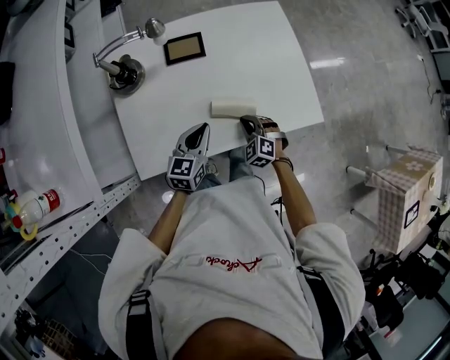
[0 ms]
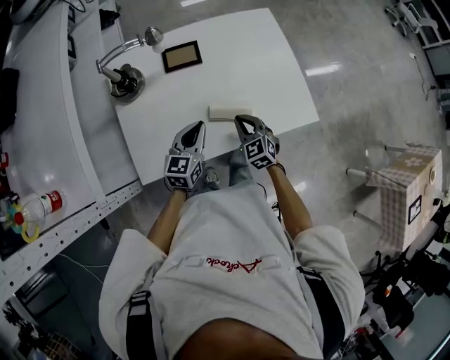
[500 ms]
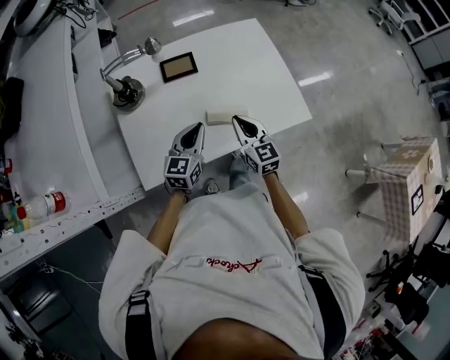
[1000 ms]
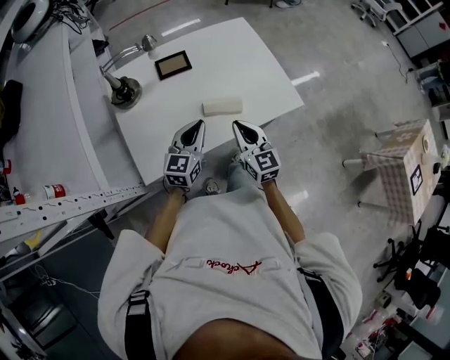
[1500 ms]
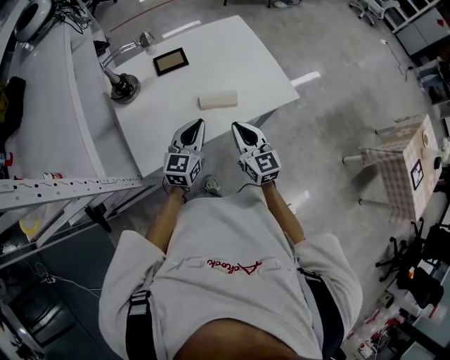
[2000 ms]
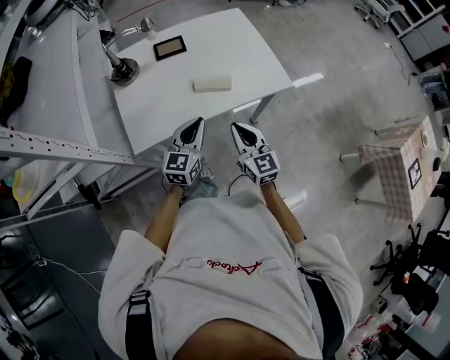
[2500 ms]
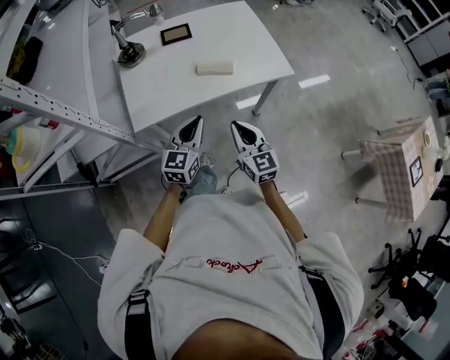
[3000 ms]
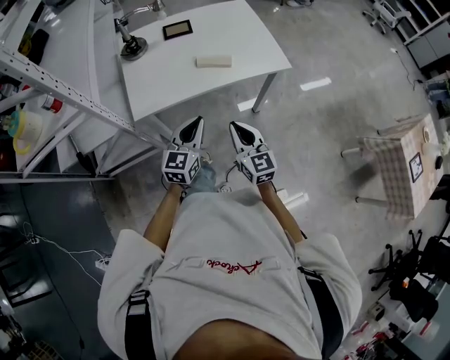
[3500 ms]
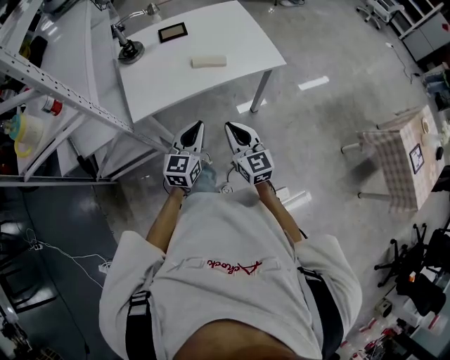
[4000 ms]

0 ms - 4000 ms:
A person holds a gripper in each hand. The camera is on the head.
0 ms - 2000 ms: The right gripper heads upward and backward, covering approximately 25 cm, and angles its fingers upward, by roughly 40 degrees; the left gripper travels upward and backward by roughly 10 cm.
2000 ms - 4000 ms: The two grippers go approximately 25 cm backward.

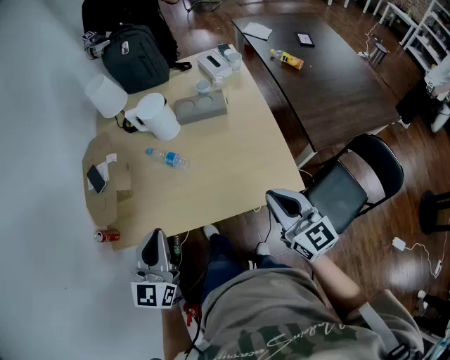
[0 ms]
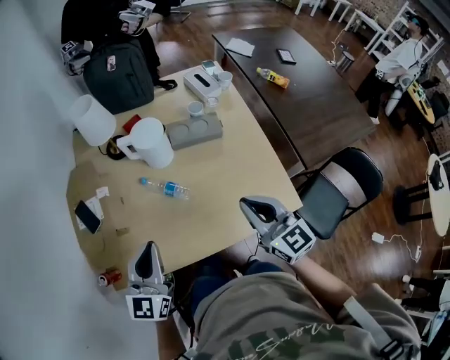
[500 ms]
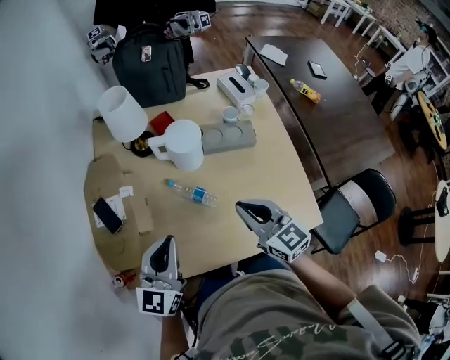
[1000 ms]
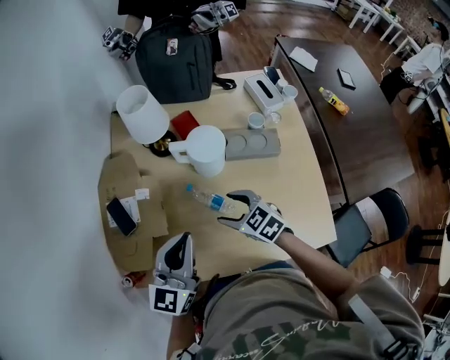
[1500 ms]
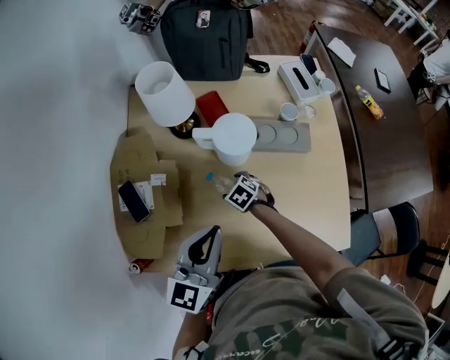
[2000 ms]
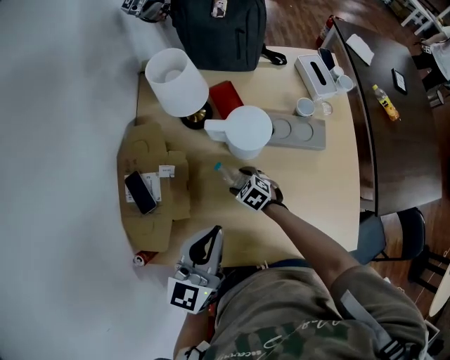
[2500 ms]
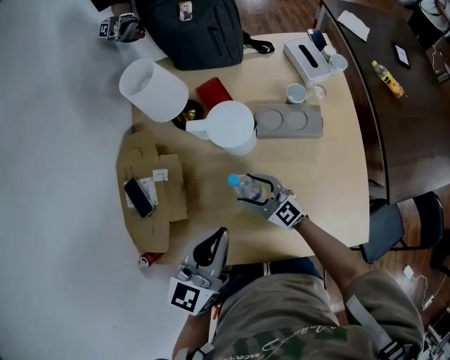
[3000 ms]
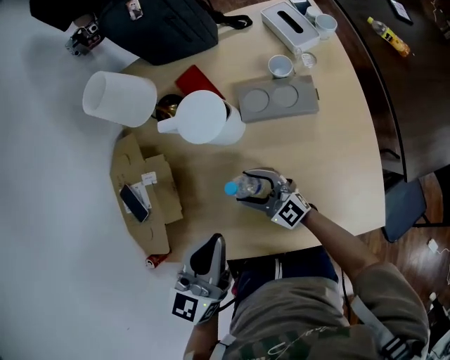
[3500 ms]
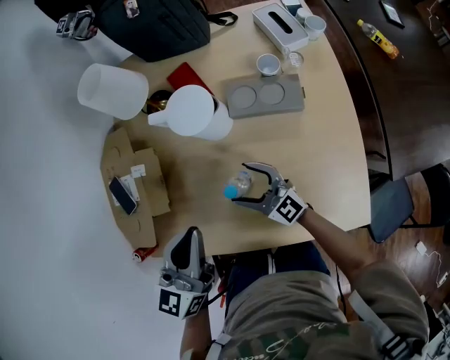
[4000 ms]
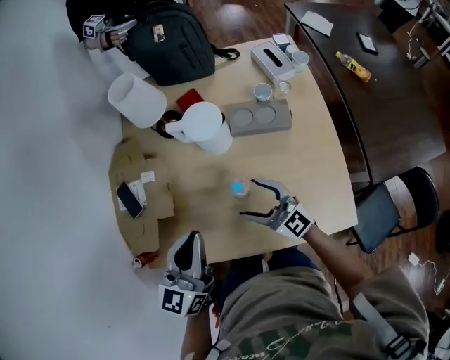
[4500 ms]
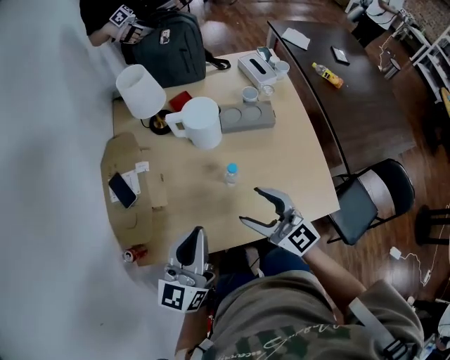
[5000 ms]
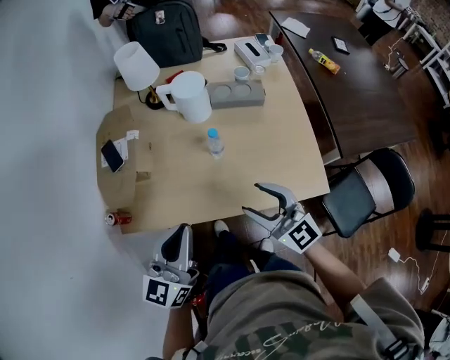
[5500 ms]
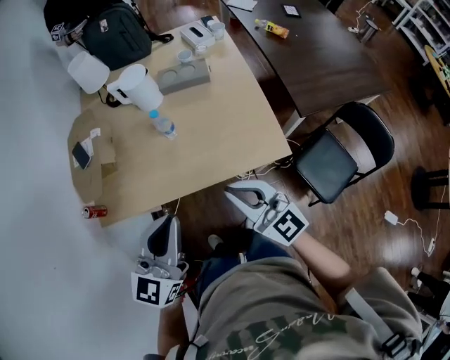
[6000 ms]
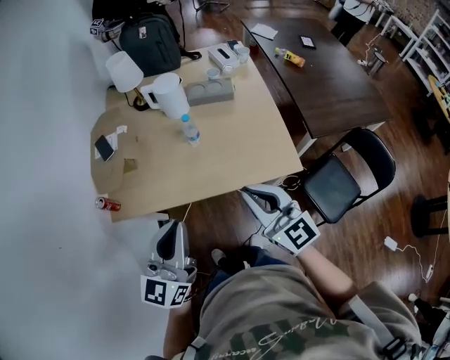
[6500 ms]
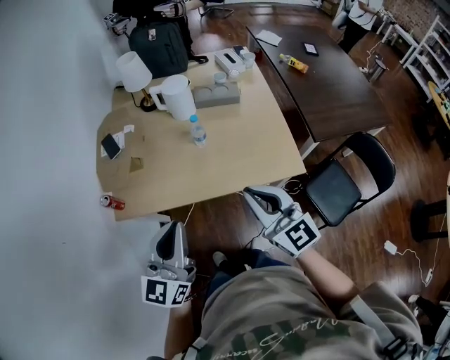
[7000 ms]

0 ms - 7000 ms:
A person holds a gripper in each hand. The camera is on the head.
0 ms - 2000 ms: The left gripper moves about 25 cm. Meanwhile the right gripper moves some 60 cm, points its fingers roughly 60 degrees further downward, and opens up.
2000 ms - 3500 ms: The left gripper is displaced to the right by about 5 cm. Meanwhile the right gripper goes some 10 cm upward and backward, and tips its fingers upward by approximately 60 degrees.
3500 ms - 5000 ms: The left gripper moves backward, to the left and upward, approximately 15 cm. Meanwhile the right gripper goes about 25 cm upward and backward.
5000 ms - 7000 ms: Both grippers travel together backward, some 25 cm. The right gripper closes.

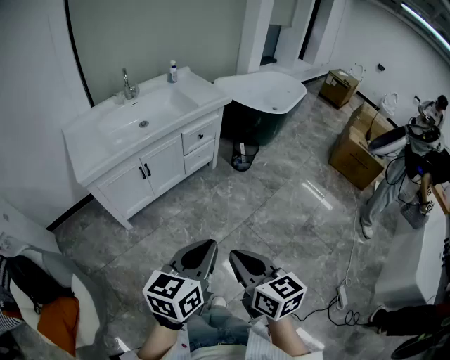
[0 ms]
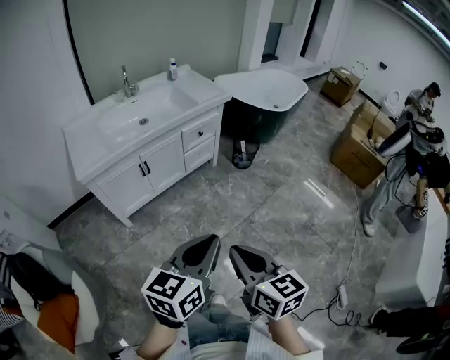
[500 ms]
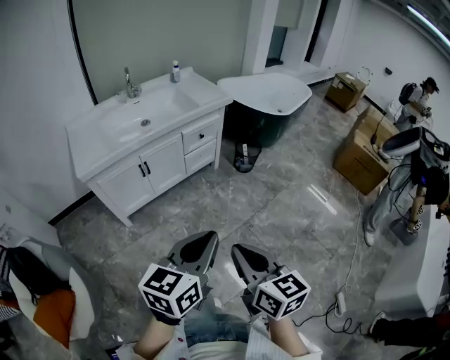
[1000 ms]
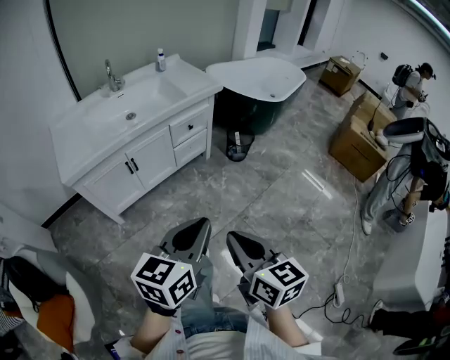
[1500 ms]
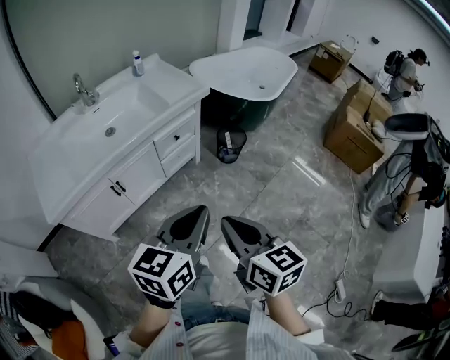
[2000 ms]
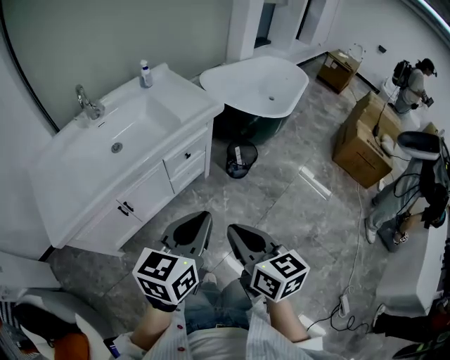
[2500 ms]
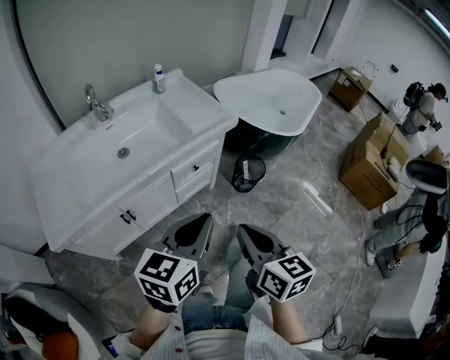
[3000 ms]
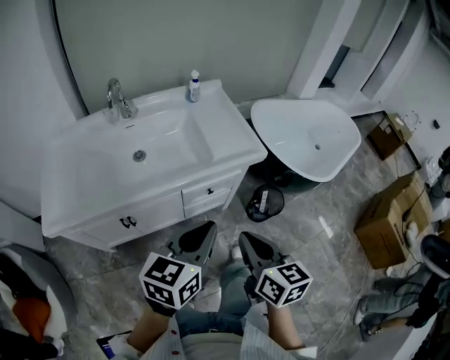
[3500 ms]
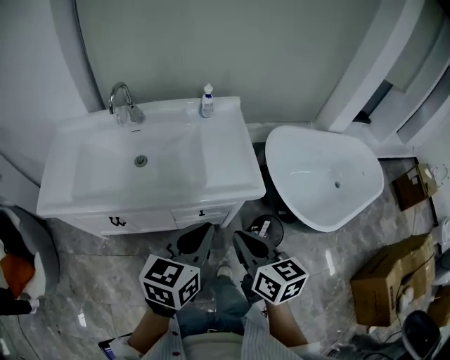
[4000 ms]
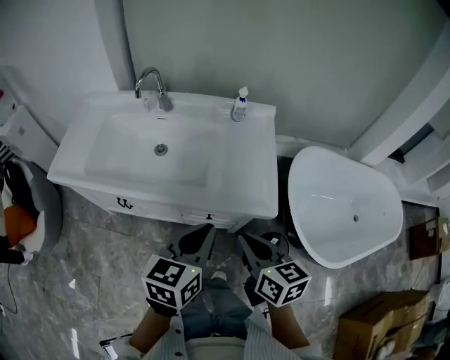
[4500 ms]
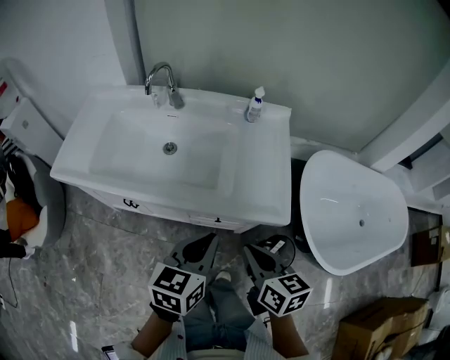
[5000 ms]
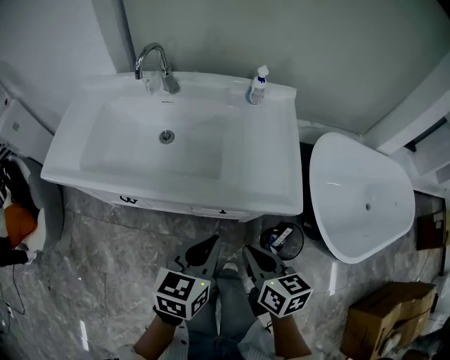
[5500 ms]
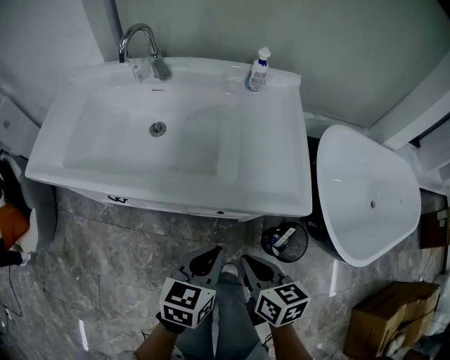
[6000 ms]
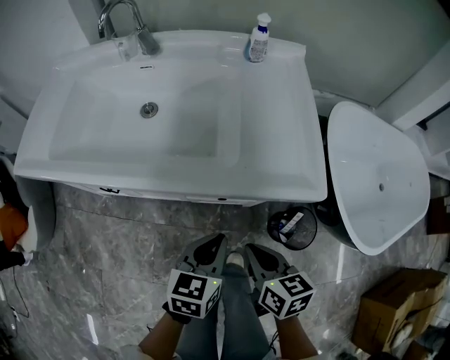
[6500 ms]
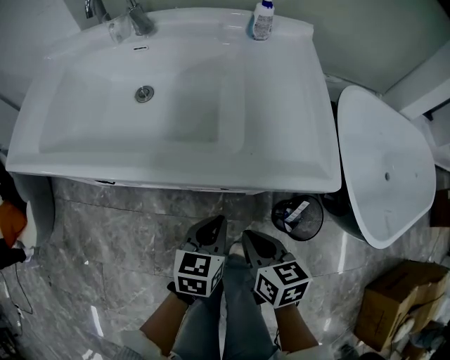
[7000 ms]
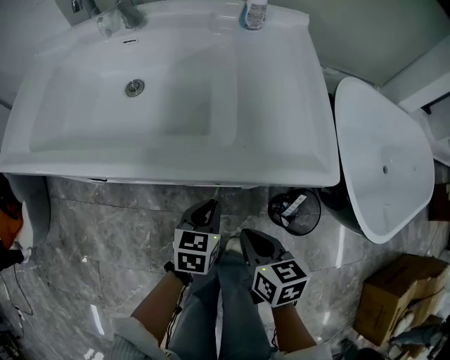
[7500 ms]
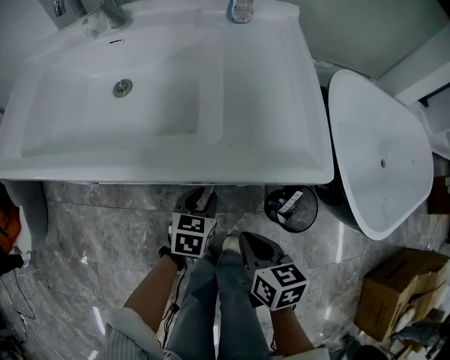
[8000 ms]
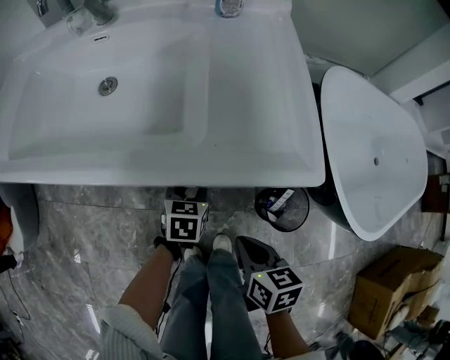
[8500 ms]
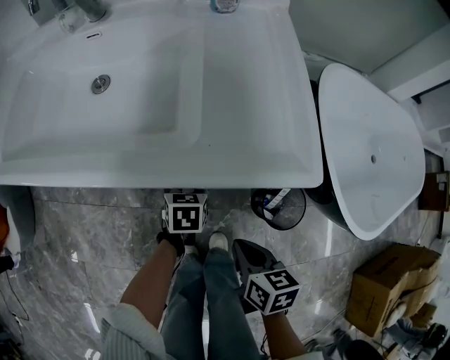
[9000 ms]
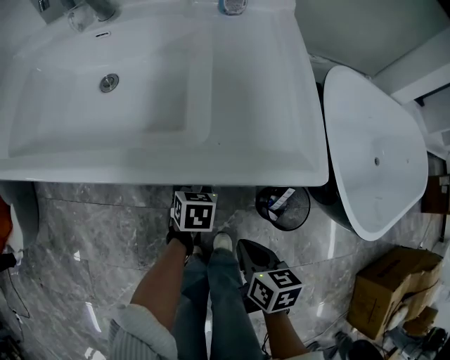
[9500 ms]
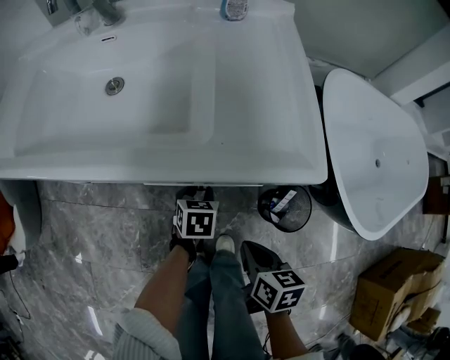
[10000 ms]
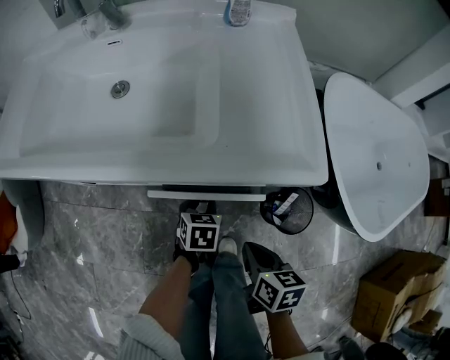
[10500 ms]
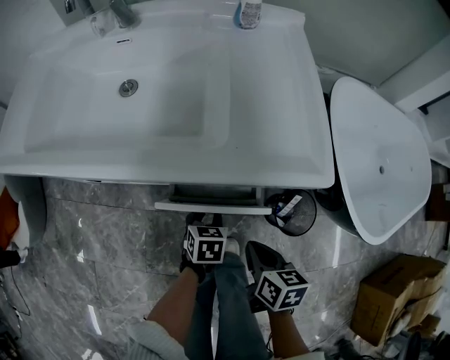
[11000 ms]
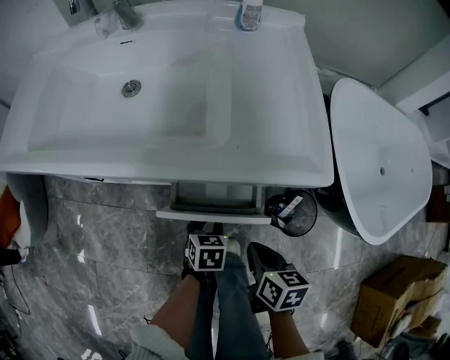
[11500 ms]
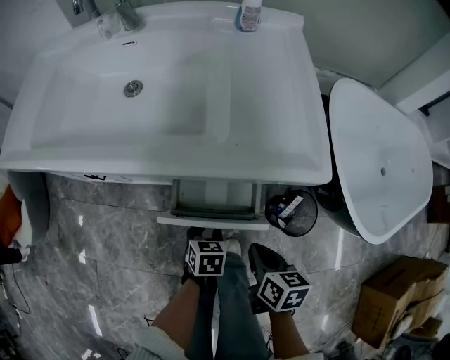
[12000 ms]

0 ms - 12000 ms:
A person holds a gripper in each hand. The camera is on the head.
0 ms - 2000 ms: The two grippers go some 25 cm forward.
2000 ms - 4000 ms: The two grippers travel together, roughly 40 cm. The right gripper turns by roughly 30 degrees. The left gripper turns by some 30 degrees.
4000 ms - 6000 ms: Both grippers travel together downward, approximately 20 cm.
6000 ms - 8000 ms: The right gripper goes roughly 15 cm downward. The left gripper moves downward and forward, roughly 25 cm, and opens.
8000 ms - 10000 ms: The grippers stay close to where they were, moving slightly.
10000 ms - 12000 ms: The left gripper travels backward by some 10 cm.

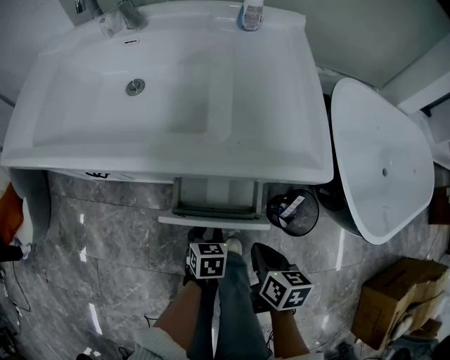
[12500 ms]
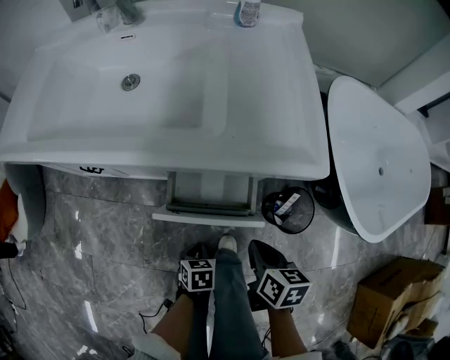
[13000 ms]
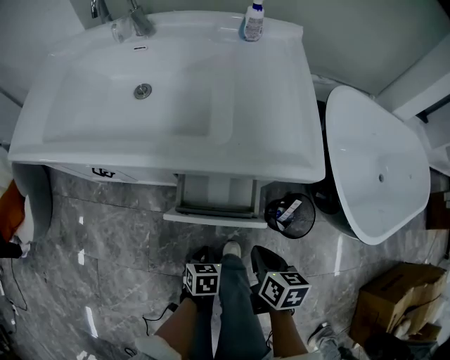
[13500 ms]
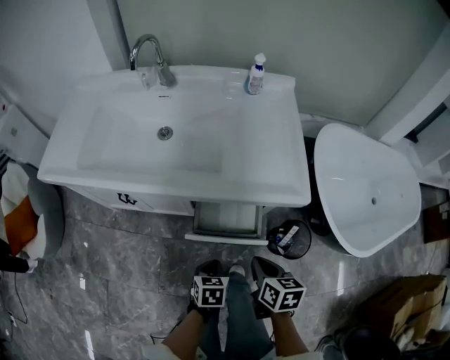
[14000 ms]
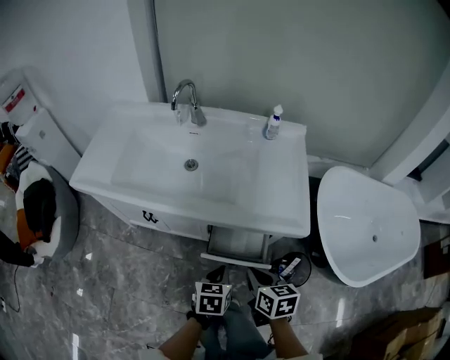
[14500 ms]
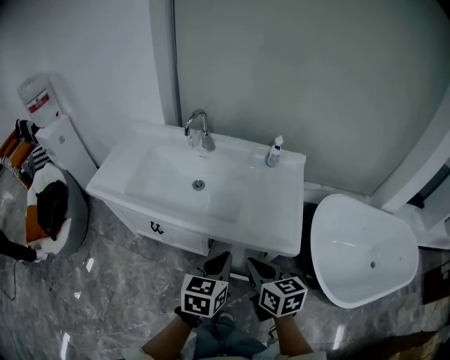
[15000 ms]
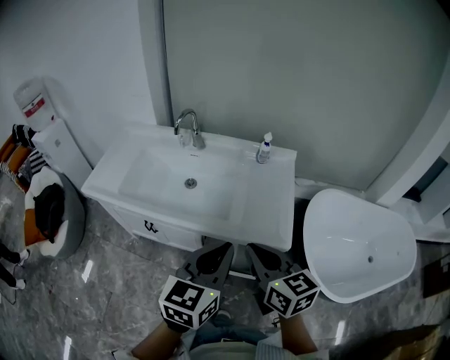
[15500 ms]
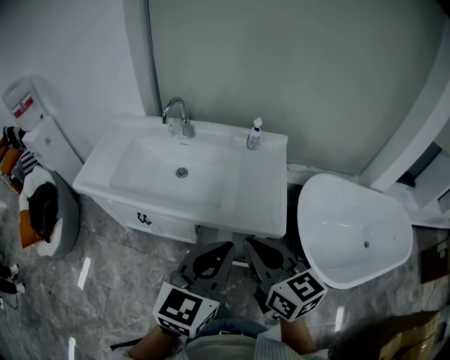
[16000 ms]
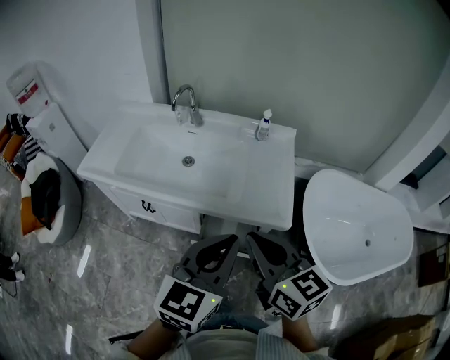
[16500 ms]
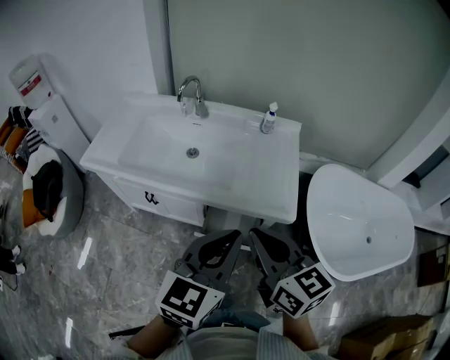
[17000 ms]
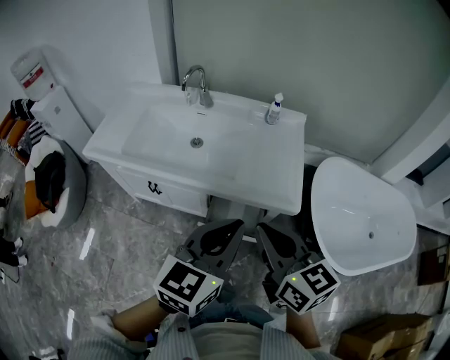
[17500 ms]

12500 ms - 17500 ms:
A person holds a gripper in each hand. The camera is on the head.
12500 ms - 15000 ms: Both grippers move upward, some 35 cm. The left gripper tilts its fingers some 30 degrees upward, and closes up, while the right gripper turns by approximately 30 degrees.
15000 ms - 17500 ms: Both grippers travel together upward and backward, approximately 15 cm. The left gripper swivels some 20 degrees.
